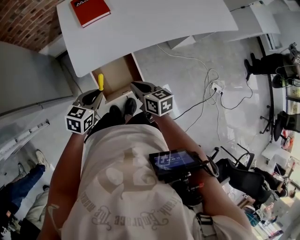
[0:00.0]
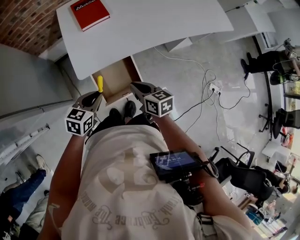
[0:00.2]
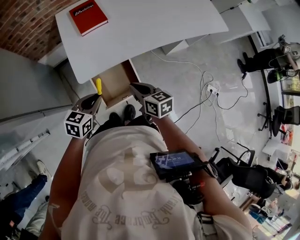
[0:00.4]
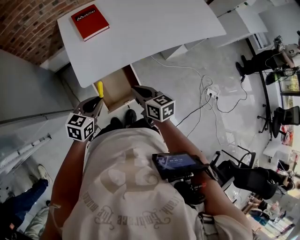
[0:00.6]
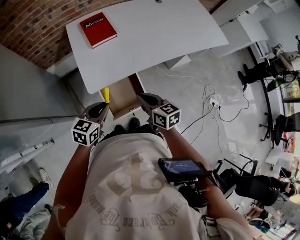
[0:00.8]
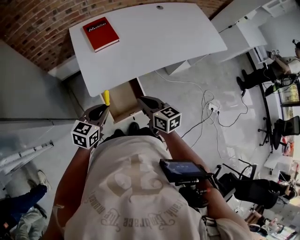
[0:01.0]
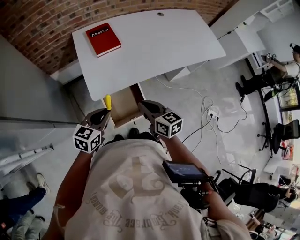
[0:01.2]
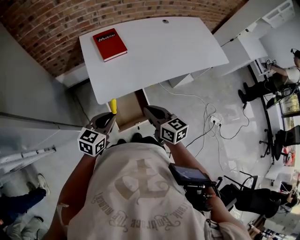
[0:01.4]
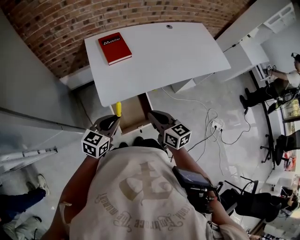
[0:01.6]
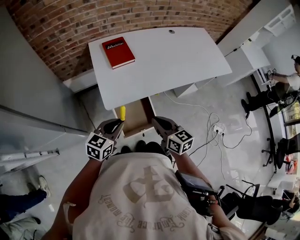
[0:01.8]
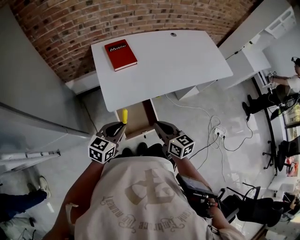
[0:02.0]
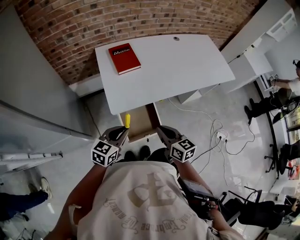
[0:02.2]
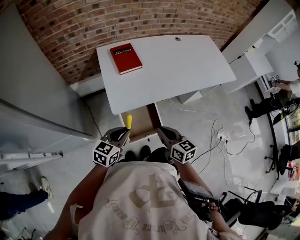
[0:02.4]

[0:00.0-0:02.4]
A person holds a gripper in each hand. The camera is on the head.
0:00.0 to 0:01.2: The two grippers go some 10 cm upward.
0:01.2 to 0:02.4: The right gripper ends up approximately 5 cm from where it was.

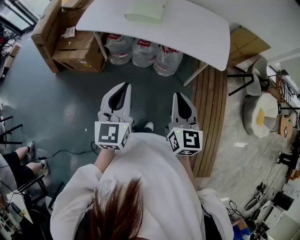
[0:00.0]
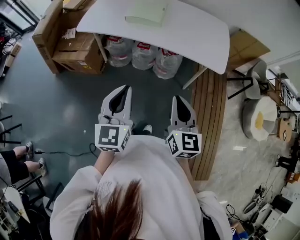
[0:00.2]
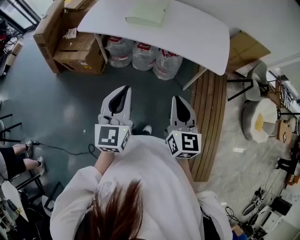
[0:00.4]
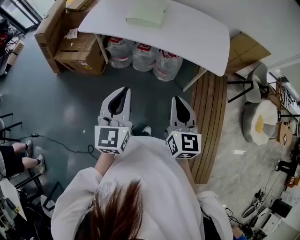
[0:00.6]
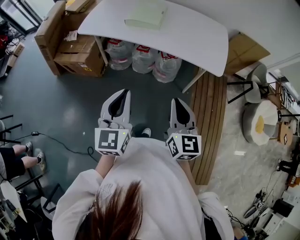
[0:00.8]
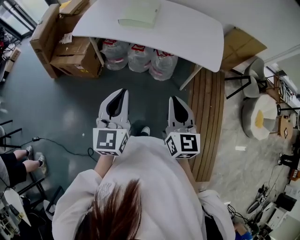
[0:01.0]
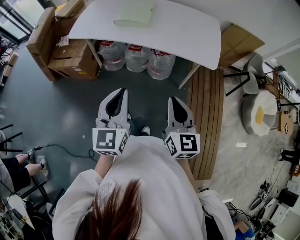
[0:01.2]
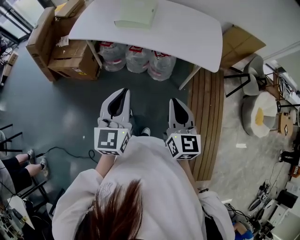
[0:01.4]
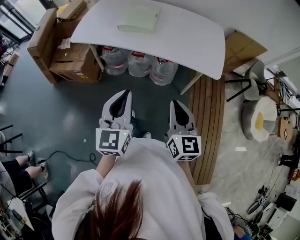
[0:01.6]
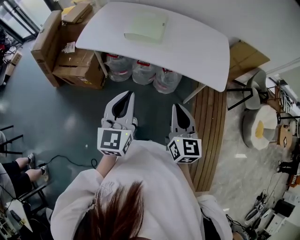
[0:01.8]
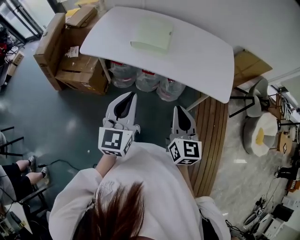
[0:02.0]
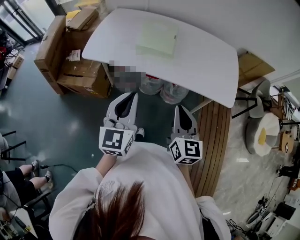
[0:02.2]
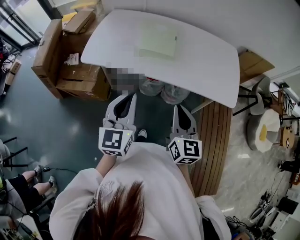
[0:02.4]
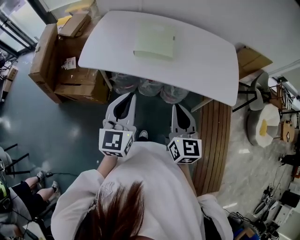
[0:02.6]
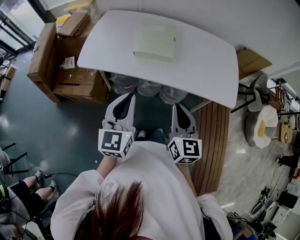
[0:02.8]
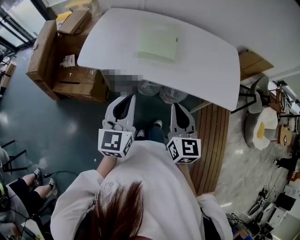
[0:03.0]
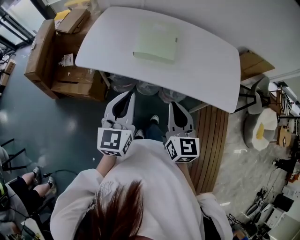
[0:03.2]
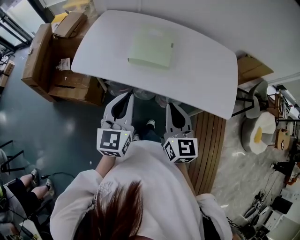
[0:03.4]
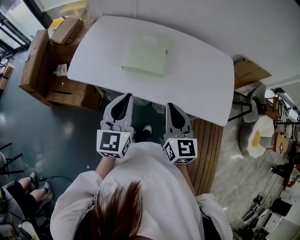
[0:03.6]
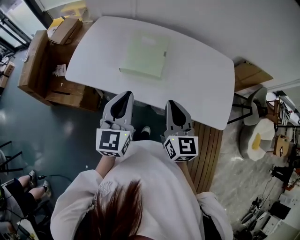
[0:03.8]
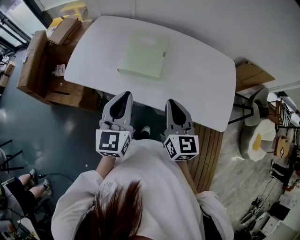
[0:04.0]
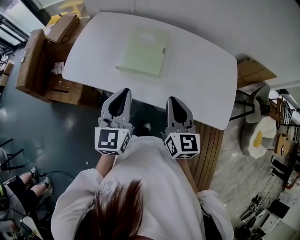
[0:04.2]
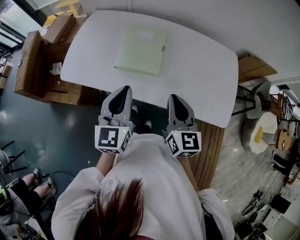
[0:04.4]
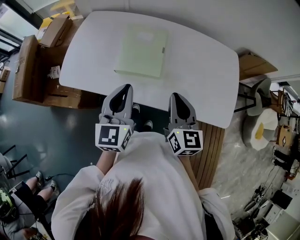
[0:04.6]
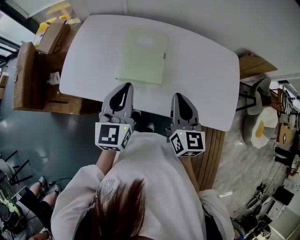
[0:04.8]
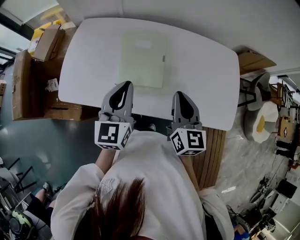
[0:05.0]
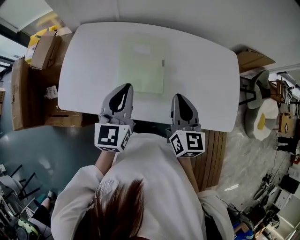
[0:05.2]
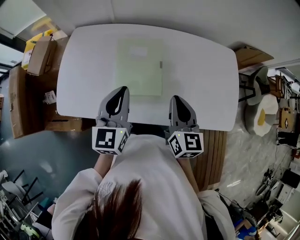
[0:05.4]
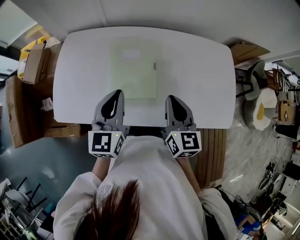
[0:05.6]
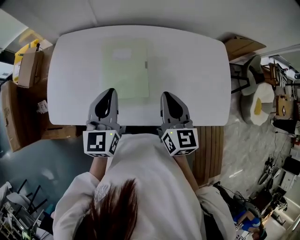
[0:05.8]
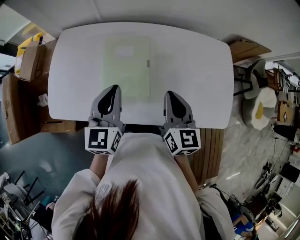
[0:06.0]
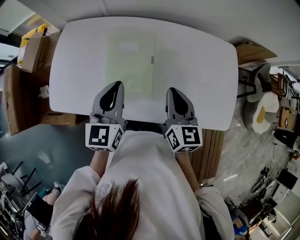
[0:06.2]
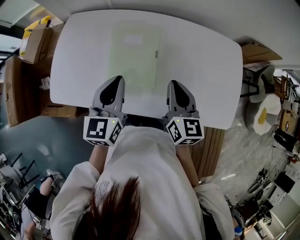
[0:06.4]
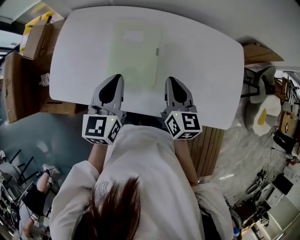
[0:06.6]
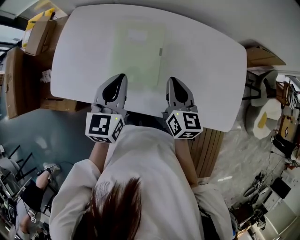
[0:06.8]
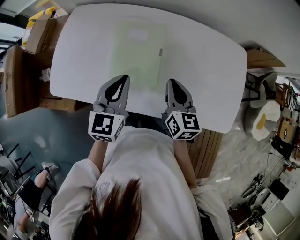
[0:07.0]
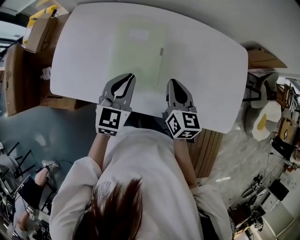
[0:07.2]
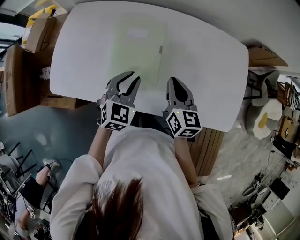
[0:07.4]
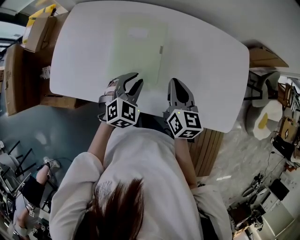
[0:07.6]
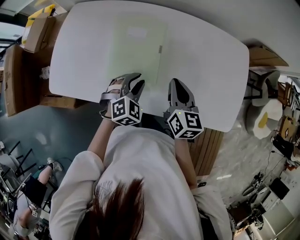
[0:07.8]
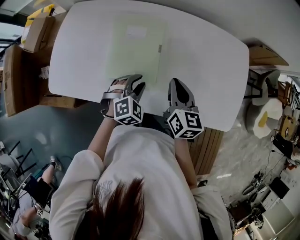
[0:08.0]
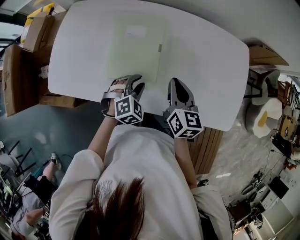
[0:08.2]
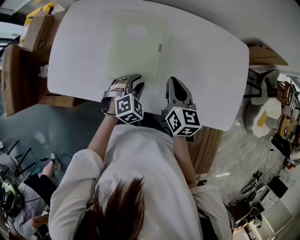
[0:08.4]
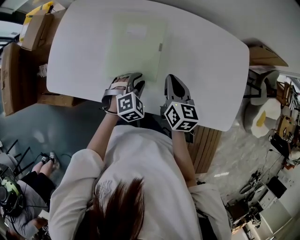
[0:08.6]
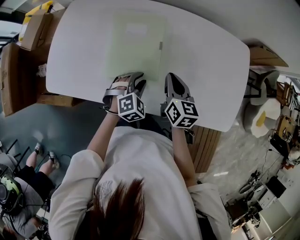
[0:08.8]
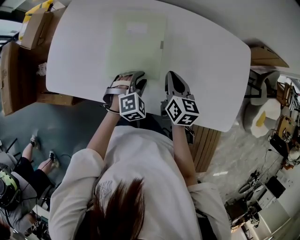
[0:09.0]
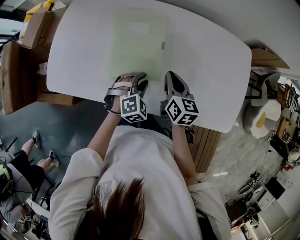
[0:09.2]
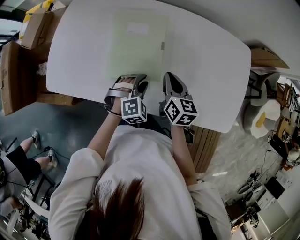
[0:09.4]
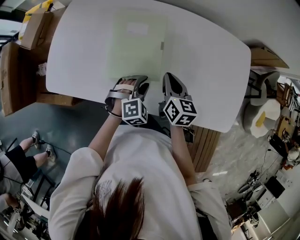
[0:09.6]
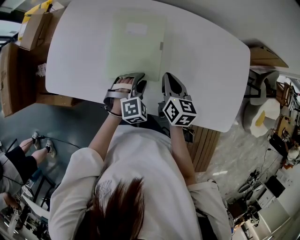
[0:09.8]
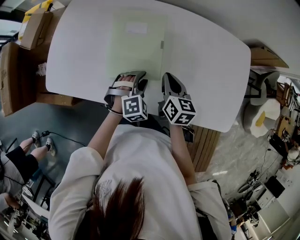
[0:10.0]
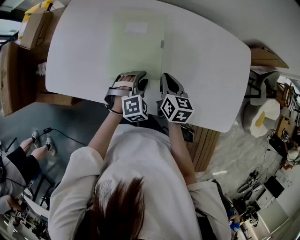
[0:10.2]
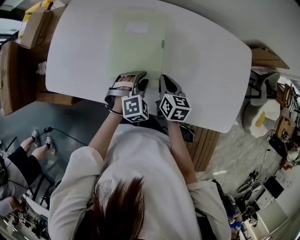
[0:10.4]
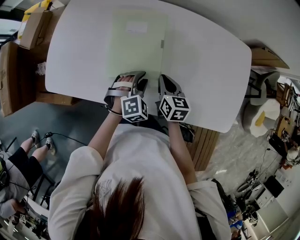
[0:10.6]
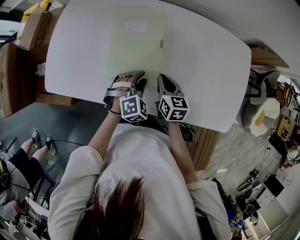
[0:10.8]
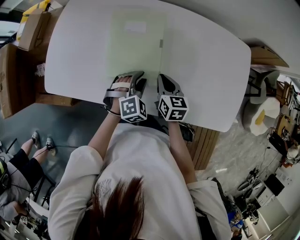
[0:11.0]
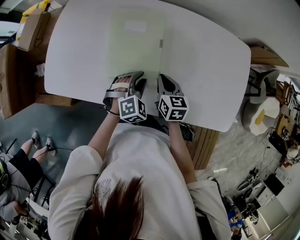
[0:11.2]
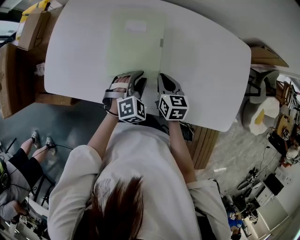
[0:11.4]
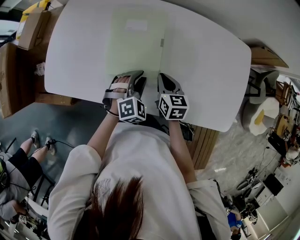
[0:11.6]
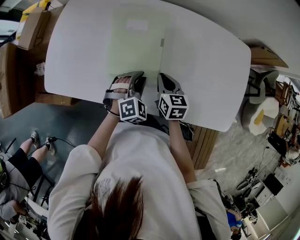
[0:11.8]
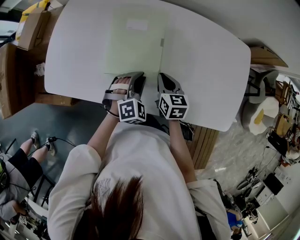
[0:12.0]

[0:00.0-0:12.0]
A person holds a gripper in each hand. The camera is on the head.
0:00.0 to 0:01.6: There are only small adjustments of the grippers.
0:01.6 to 0:03.0: The grippers both shift forward and to the left by roughly 25 cm.
0:03.0 to 0:04.4: The two grippers go roughly 20 cm forward and to the right.
0:04.4 to 0:06.0: Both grippers move forward, some 15 cm.
0:06.0 to 0:07.6: The left gripper heads downward, covering roughly 15 cm, rotates about 50 degrees, and opens up; the right gripper heads downward, covering about 10 cm.
0:07.6 to 0:09.0: Both grippers move downward, about 5 cm.
0:09.0 to 0:10.4: The right gripper heads downward, covering approximately 5 cm.
0:10.4 to 0:12.0: The grippers move only a little.

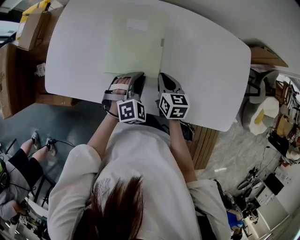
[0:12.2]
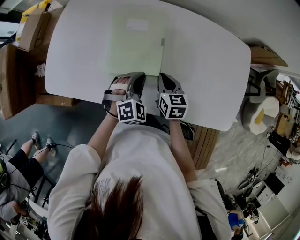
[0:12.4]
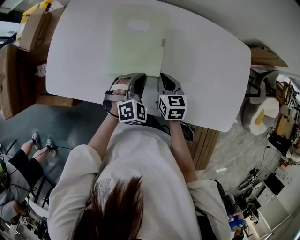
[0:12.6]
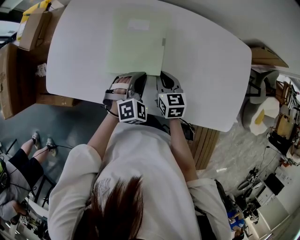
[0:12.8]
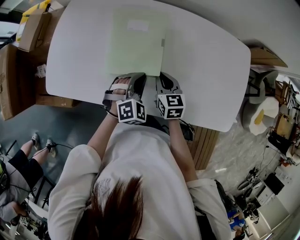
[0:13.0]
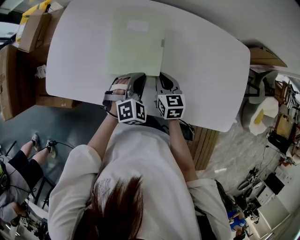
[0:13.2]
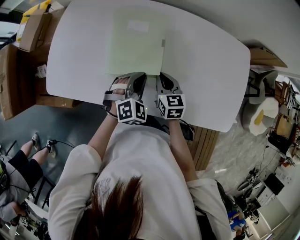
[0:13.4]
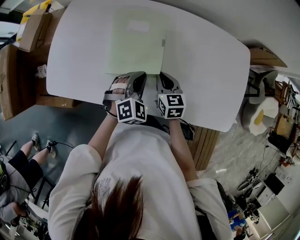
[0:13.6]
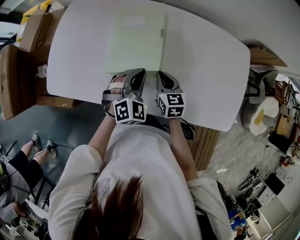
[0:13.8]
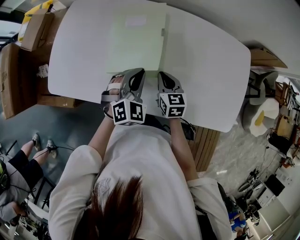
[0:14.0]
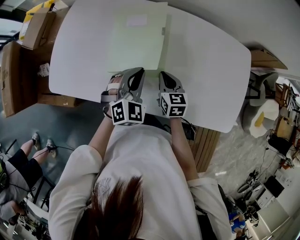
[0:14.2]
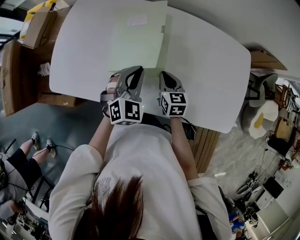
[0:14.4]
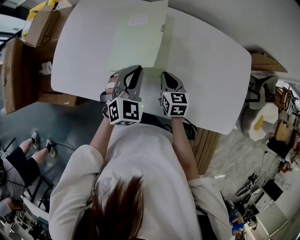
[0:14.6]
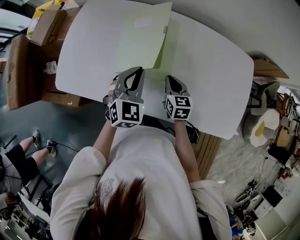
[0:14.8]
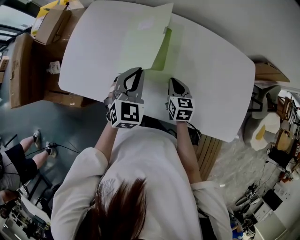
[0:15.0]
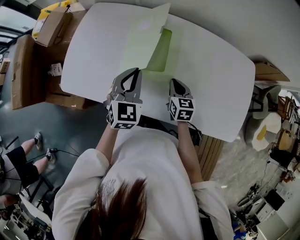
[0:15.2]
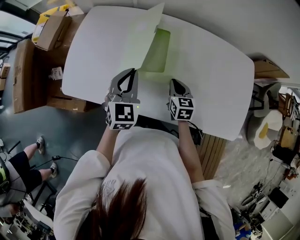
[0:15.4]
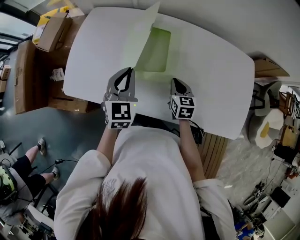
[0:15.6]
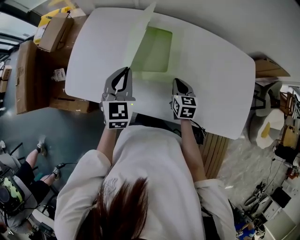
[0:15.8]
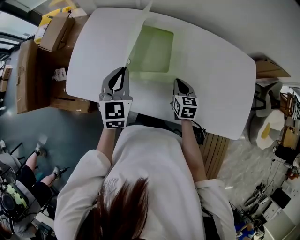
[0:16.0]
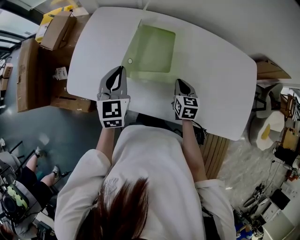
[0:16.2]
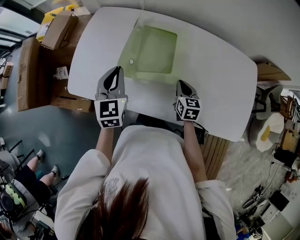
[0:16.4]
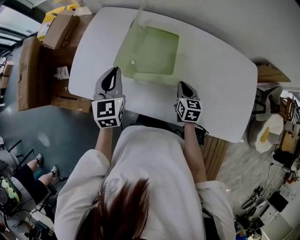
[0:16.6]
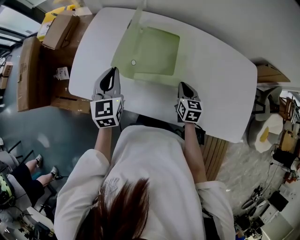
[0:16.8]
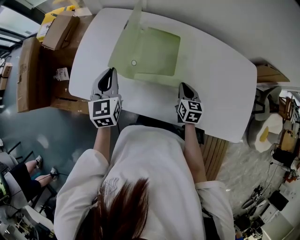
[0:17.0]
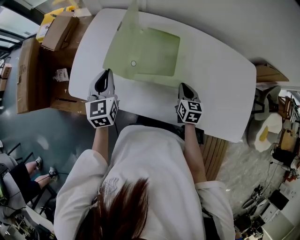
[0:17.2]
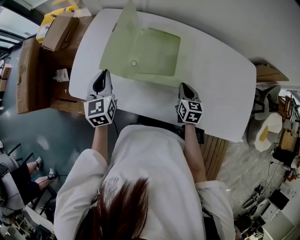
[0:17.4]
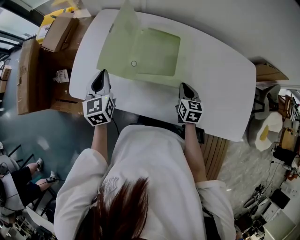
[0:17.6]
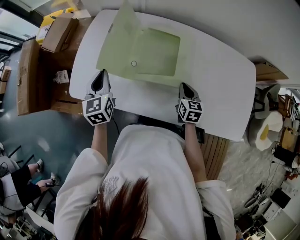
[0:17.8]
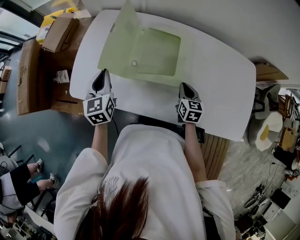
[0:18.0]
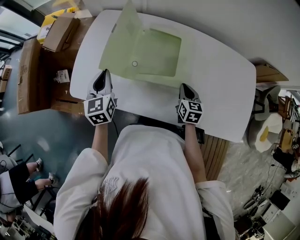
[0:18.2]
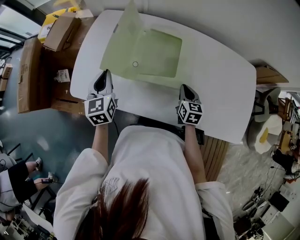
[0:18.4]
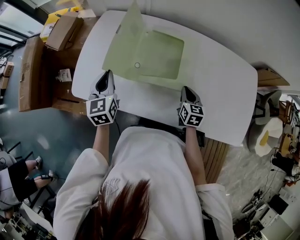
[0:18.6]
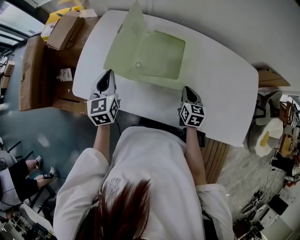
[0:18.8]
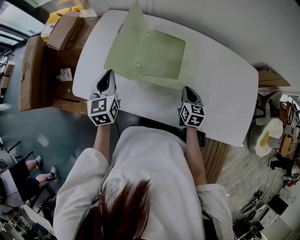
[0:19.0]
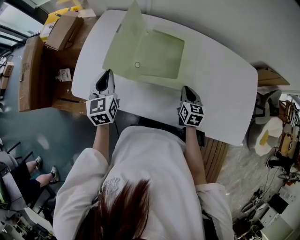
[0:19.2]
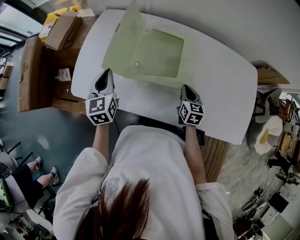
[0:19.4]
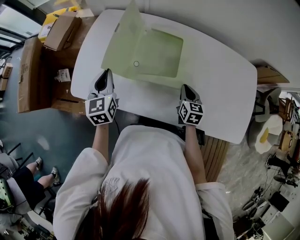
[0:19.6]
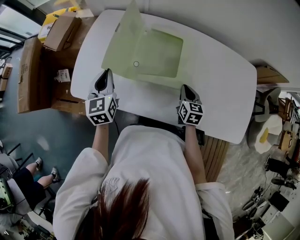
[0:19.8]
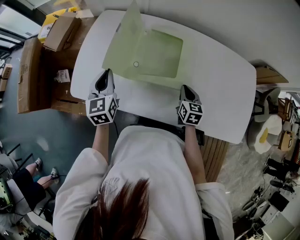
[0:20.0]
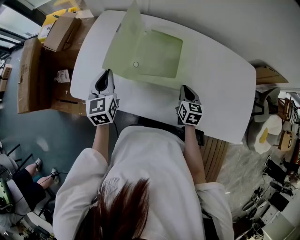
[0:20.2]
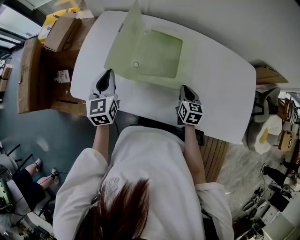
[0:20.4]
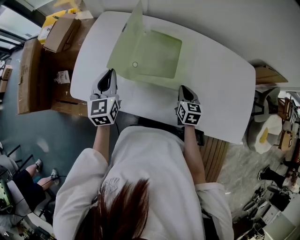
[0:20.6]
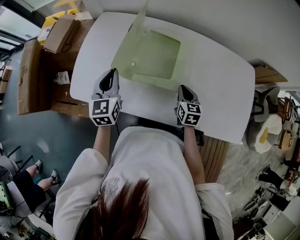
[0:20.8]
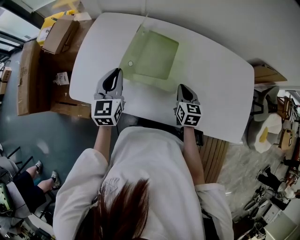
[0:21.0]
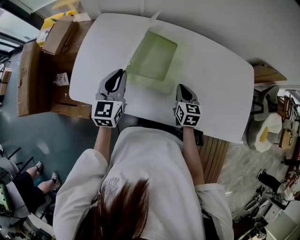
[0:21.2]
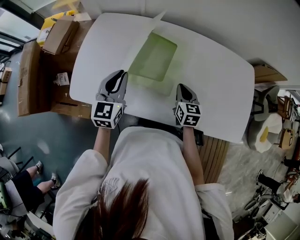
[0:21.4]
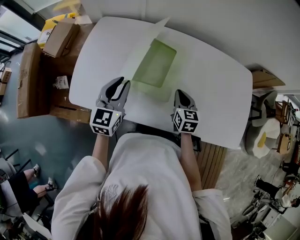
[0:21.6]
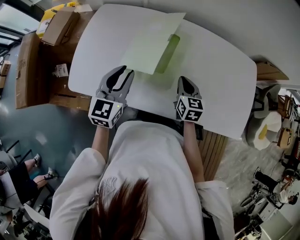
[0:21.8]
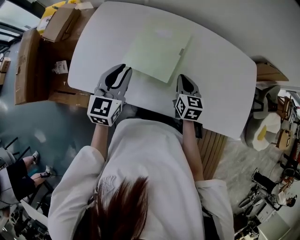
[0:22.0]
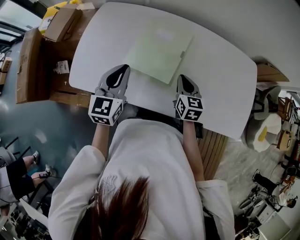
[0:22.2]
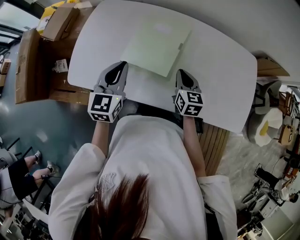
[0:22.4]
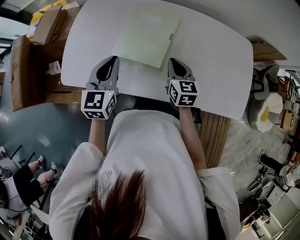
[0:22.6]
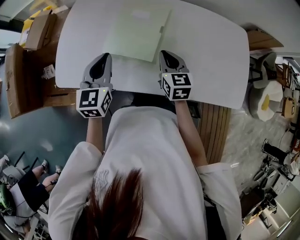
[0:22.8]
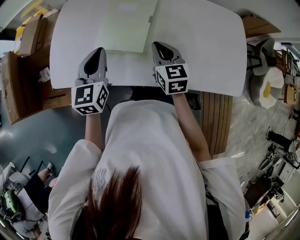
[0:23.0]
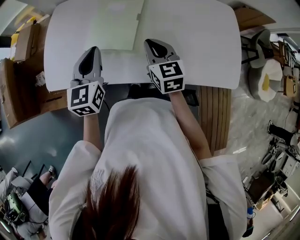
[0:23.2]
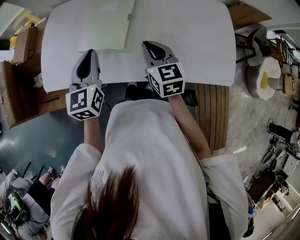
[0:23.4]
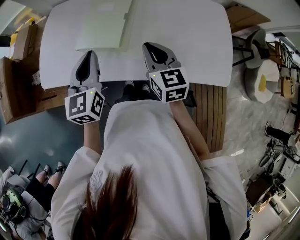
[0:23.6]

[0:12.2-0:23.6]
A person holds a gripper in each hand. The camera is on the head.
0:12.2 to 0:13.6: The grippers stay close to where they were, moving slightly.
0:13.6 to 0:15.0: The left gripper travels upward and to the left by roughly 10 cm, and rotates some 30 degrees.
0:15.0 to 0:16.4: The left gripper travels to the left by approximately 10 cm.
0:16.4 to 0:17.8: The left gripper shifts approximately 10 cm to the left.
0:17.8 to 0:19.4: Both grippers stay put.
0:19.4 to 0:20.8: The grippers move only a little.
0:20.8 to 0:22.2: The left gripper heads to the right, covering some 5 cm.
0:22.2 to 0:23.6: The right gripper is displaced upward and backward by roughly 15 cm, while the left gripper shifts about 10 cm to the right and backward.
